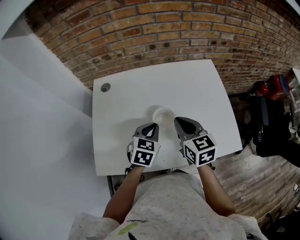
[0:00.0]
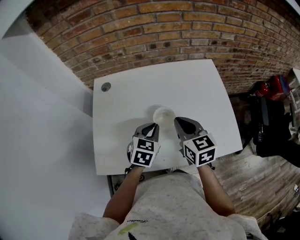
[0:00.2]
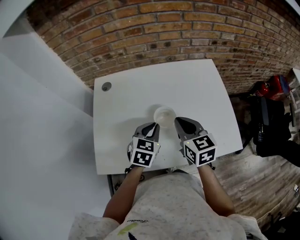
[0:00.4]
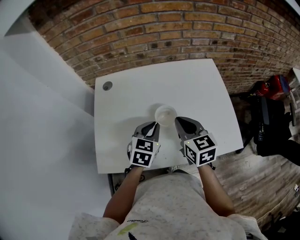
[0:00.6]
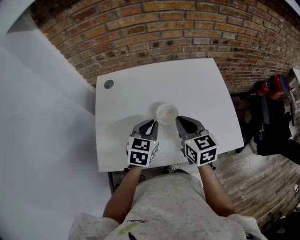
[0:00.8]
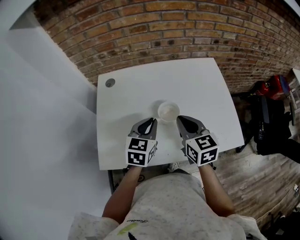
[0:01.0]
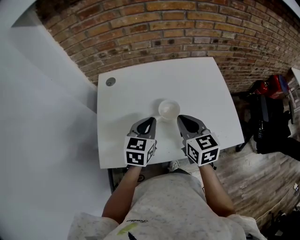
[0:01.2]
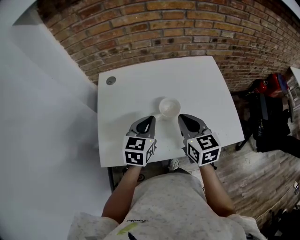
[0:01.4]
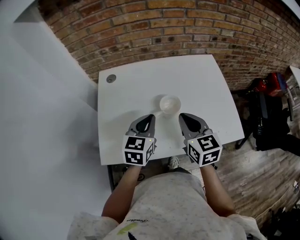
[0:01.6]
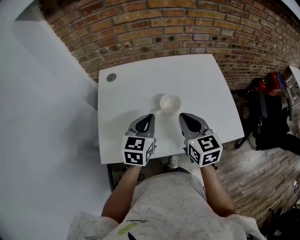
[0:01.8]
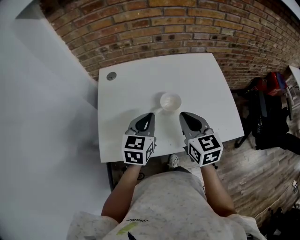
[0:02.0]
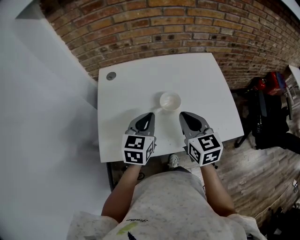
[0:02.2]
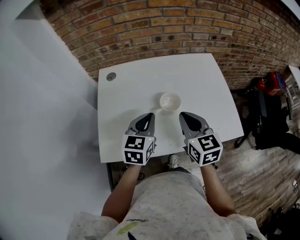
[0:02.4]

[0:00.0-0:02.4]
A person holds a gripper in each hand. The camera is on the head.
0:00.0 to 0:01.2: The left gripper ends up approximately 5 cm from where it was.
0:01.2 to 0:02.4: The grippers make only small movements.

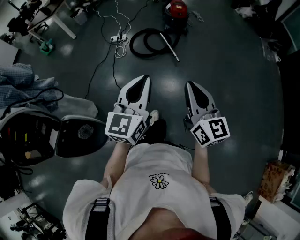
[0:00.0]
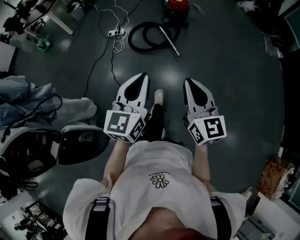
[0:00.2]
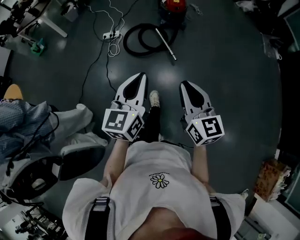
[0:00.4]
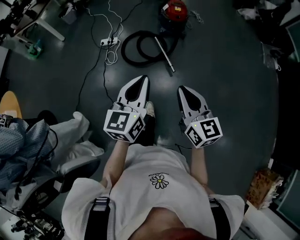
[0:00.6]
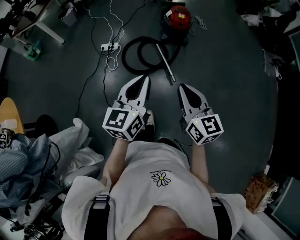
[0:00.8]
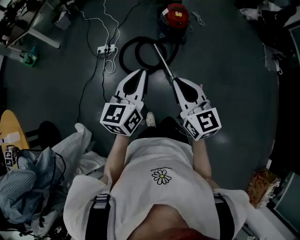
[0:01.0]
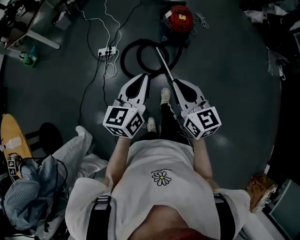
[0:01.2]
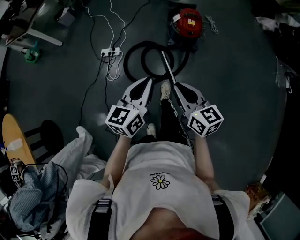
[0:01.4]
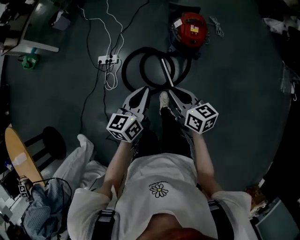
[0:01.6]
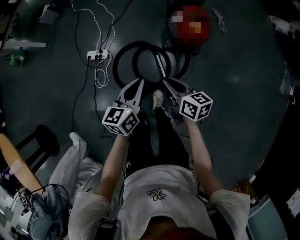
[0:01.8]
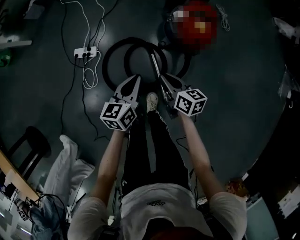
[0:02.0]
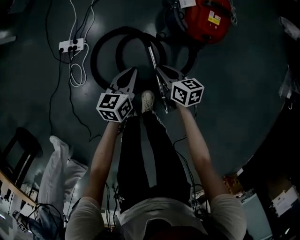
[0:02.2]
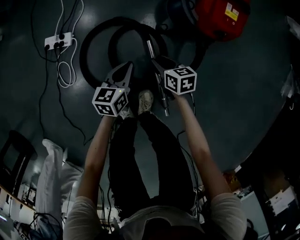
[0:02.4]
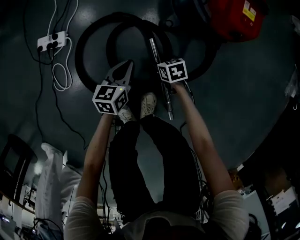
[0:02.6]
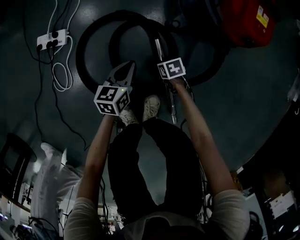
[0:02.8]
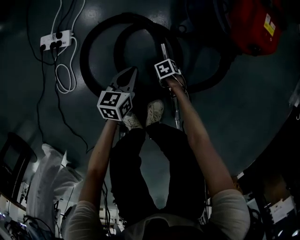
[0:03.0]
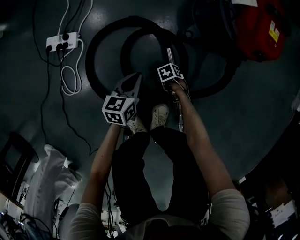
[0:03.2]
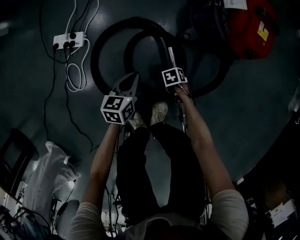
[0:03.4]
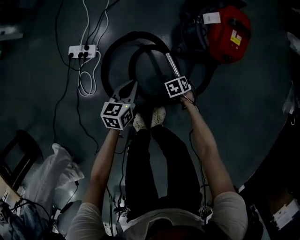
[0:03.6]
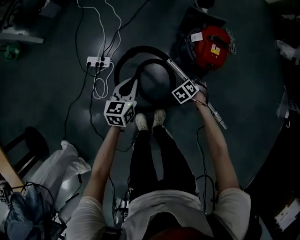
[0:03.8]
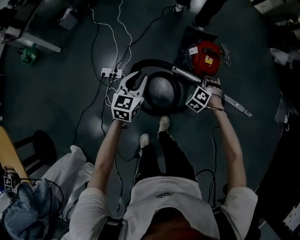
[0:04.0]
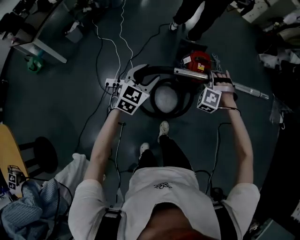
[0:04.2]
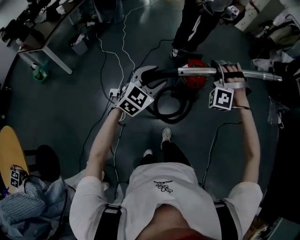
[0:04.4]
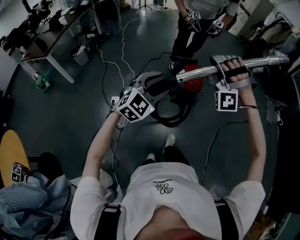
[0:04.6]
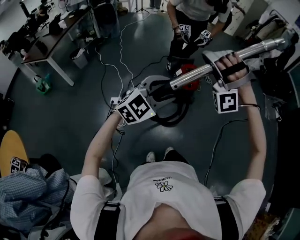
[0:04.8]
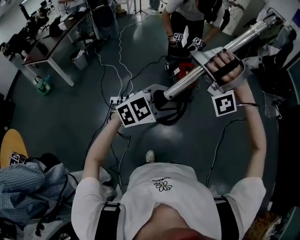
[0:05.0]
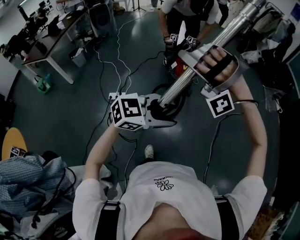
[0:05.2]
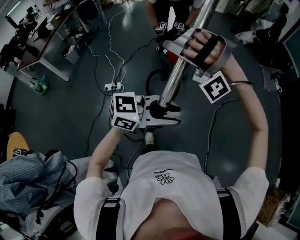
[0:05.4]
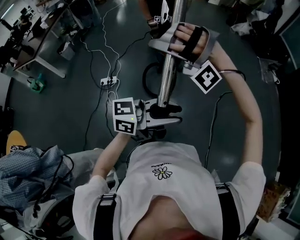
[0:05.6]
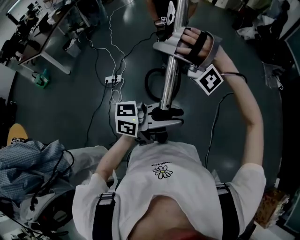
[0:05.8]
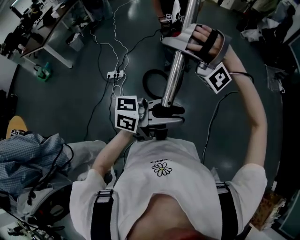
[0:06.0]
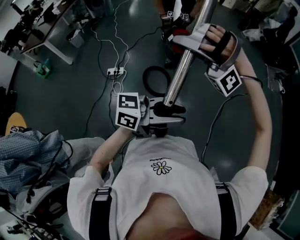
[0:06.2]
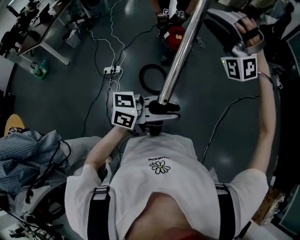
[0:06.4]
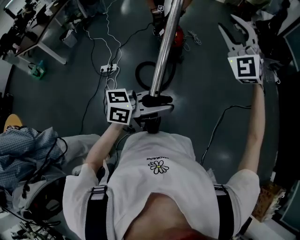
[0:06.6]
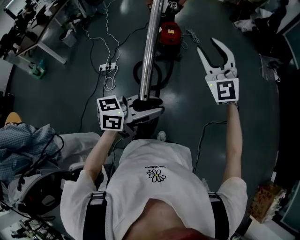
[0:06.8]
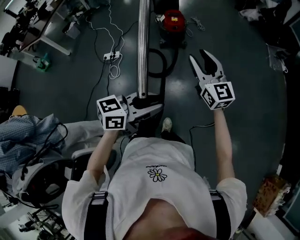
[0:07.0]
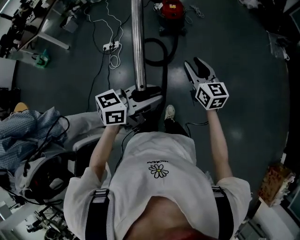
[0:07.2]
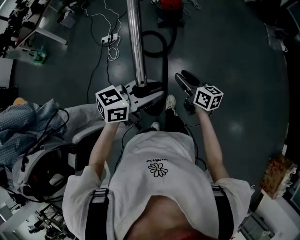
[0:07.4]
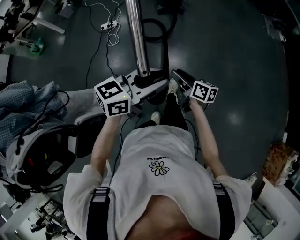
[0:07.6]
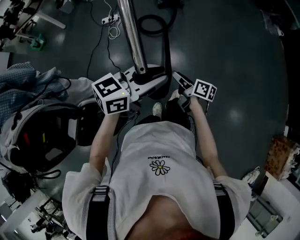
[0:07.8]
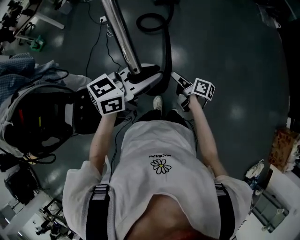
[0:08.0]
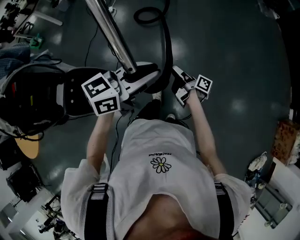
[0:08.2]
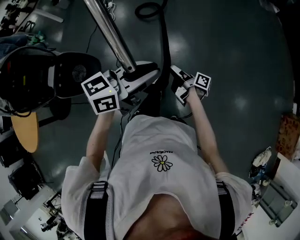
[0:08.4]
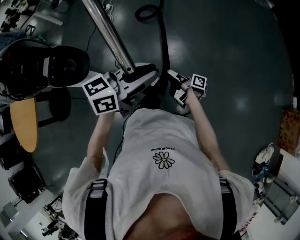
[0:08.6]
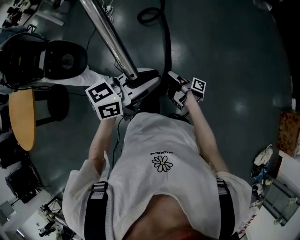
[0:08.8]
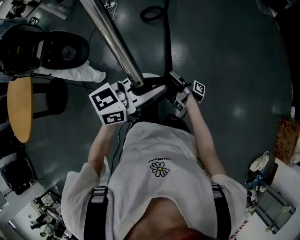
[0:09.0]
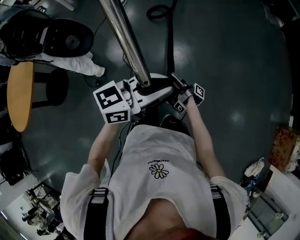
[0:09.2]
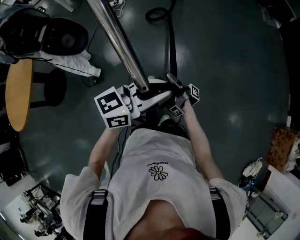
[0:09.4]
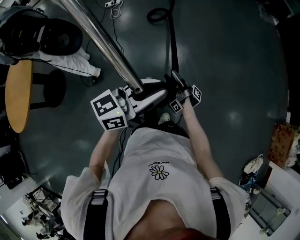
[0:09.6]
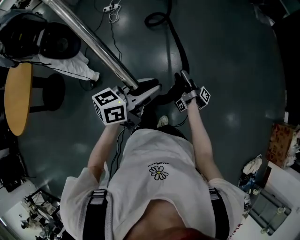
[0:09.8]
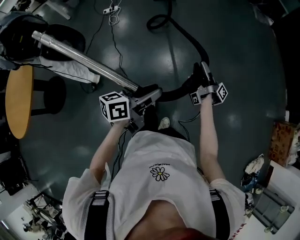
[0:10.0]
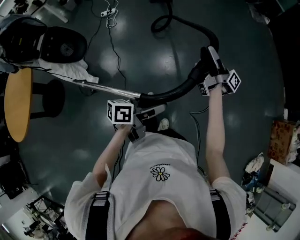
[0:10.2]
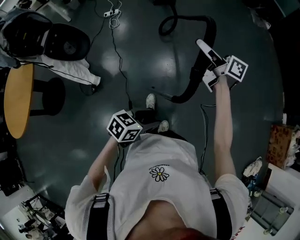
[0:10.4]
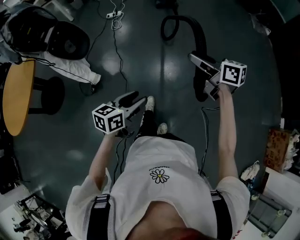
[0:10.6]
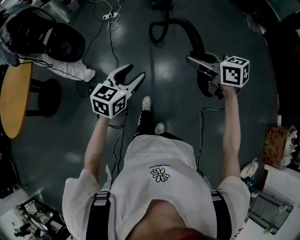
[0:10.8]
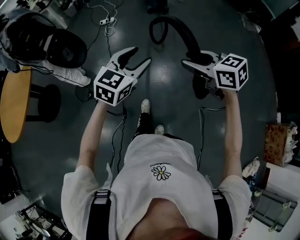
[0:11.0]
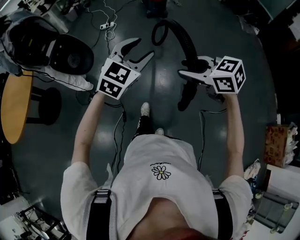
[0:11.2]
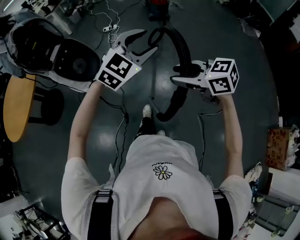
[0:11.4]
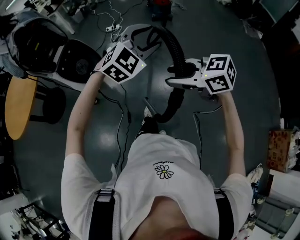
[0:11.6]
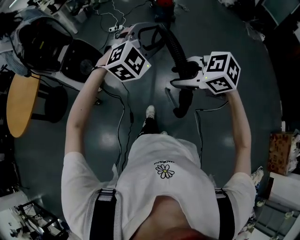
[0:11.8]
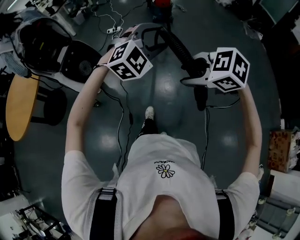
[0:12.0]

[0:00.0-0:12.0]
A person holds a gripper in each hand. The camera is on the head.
0:00.0 to 0:01.6: The two grippers travel together, forward, roughly 80 cm. The right gripper turns by some 40 degrees; the left gripper changes its angle by some 30 degrees.
0:01.6 to 0:03.0: The two grippers go some 70 cm downward. The left gripper rotates roughly 20 degrees. Meanwhile the right gripper tilts its fingers roughly 50 degrees downward, and opens.
0:03.0 to 0:04.4: Both grippers travel together upward, roughly 90 cm. The left gripper twists approximately 60 degrees clockwise, seen from behind, and opens up; the right gripper angles its fingers upward, by some 60 degrees, and closes.
0:04.4 to 0:06.0: The left gripper changes place by about 50 cm, and turns by about 70 degrees. Meanwhile the right gripper shifts by approximately 40 cm, and swivels approximately 60 degrees.
0:06.0 to 0:07.6: The left gripper changes place by roughly 30 cm, and swivels approximately 30 degrees; the right gripper shifts by some 50 cm, and turns by approximately 180 degrees.
0:07.6 to 0:09.0: The two grippers travel together, backward, approximately 50 cm. The right gripper twists approximately 60 degrees clockwise, seen from behind.
0:09.0 to 0:10.4: The left gripper goes about 20 cm backward and downward, rotates roughly 30 degrees, and opens up; the right gripper heads upward, covering approximately 30 cm, and twists some 60 degrees counterclockwise, seen from behind.
0:10.4 to 0:12.0: The right gripper ends up some 20 cm from where it was, and angles its fingers downward, by about 60 degrees, while the left gripper heads upward, covering about 25 cm, and twists roughly 70 degrees clockwise, seen from behind.

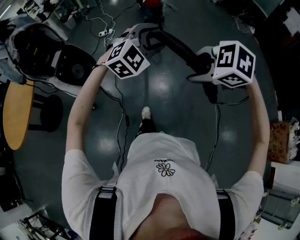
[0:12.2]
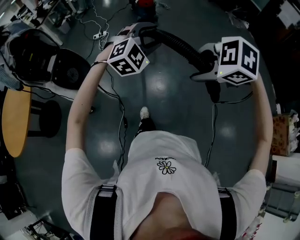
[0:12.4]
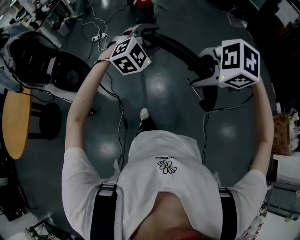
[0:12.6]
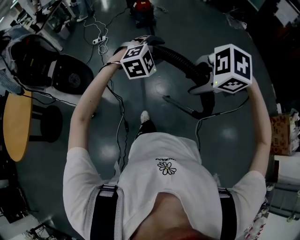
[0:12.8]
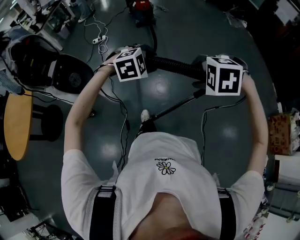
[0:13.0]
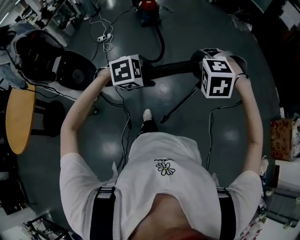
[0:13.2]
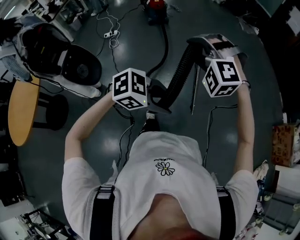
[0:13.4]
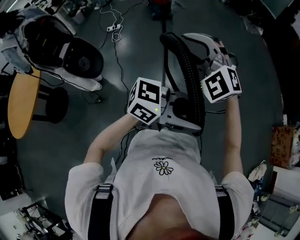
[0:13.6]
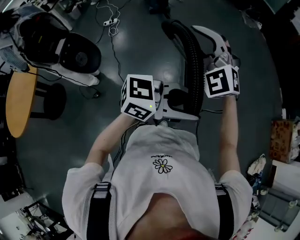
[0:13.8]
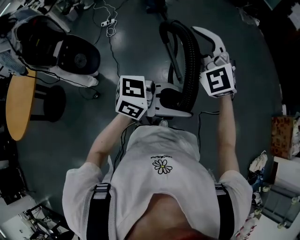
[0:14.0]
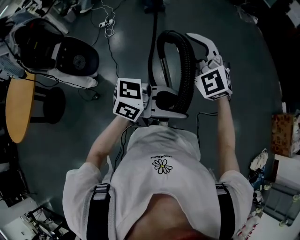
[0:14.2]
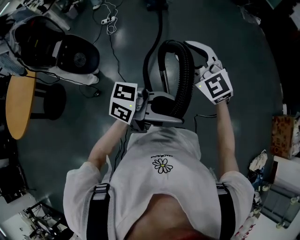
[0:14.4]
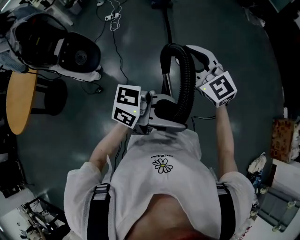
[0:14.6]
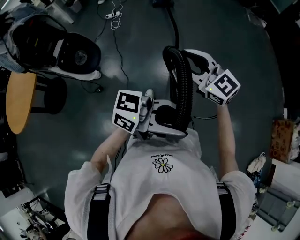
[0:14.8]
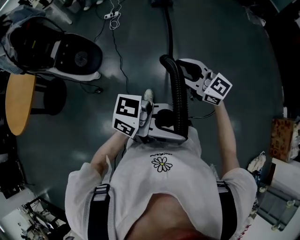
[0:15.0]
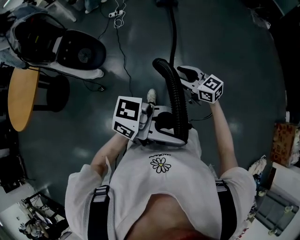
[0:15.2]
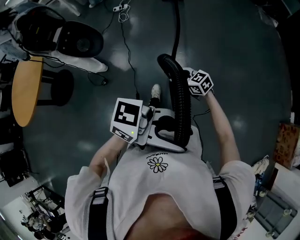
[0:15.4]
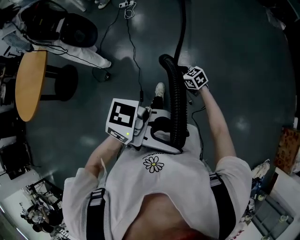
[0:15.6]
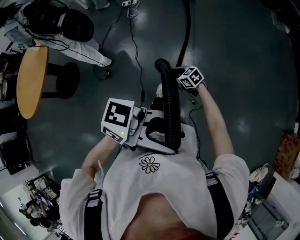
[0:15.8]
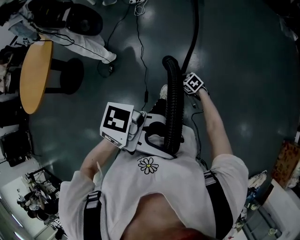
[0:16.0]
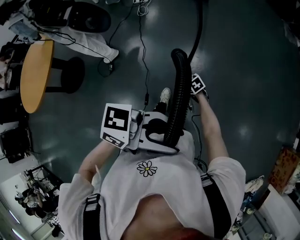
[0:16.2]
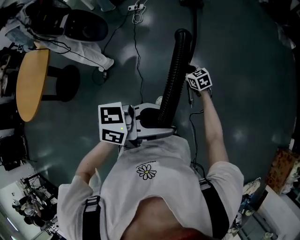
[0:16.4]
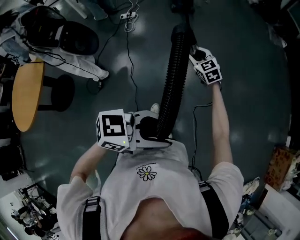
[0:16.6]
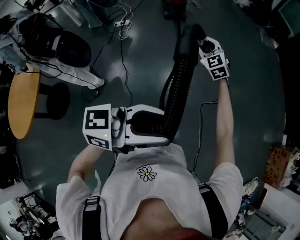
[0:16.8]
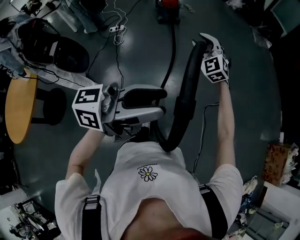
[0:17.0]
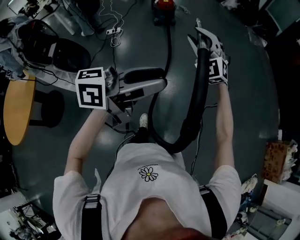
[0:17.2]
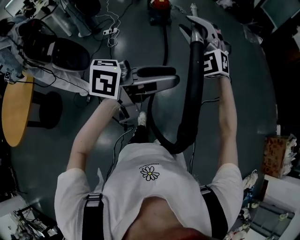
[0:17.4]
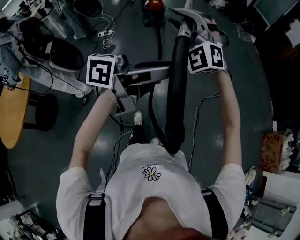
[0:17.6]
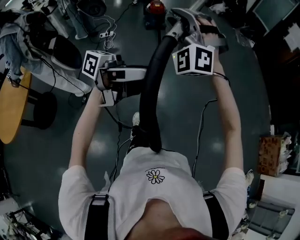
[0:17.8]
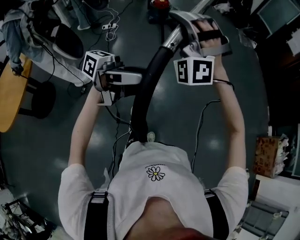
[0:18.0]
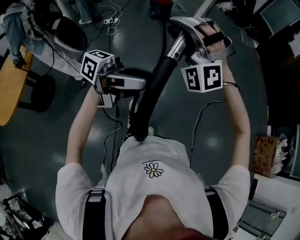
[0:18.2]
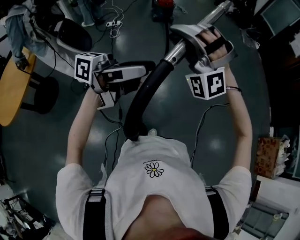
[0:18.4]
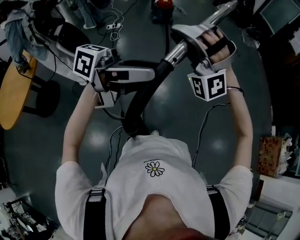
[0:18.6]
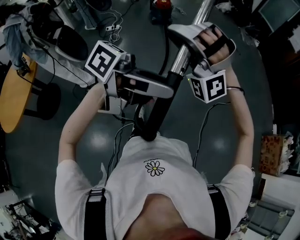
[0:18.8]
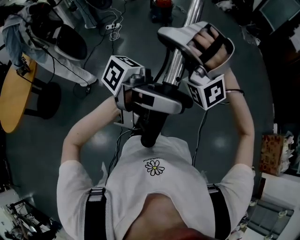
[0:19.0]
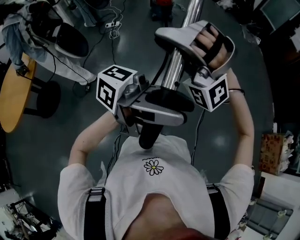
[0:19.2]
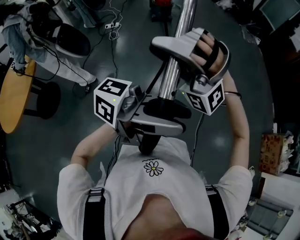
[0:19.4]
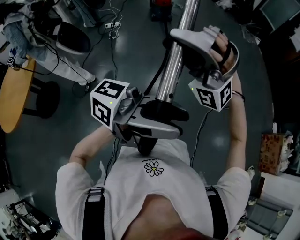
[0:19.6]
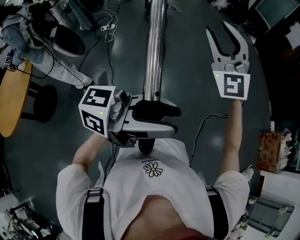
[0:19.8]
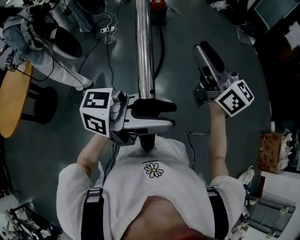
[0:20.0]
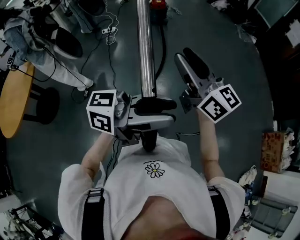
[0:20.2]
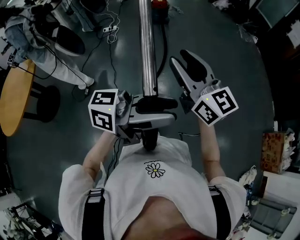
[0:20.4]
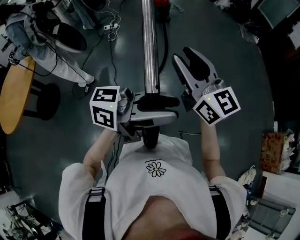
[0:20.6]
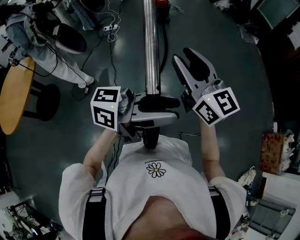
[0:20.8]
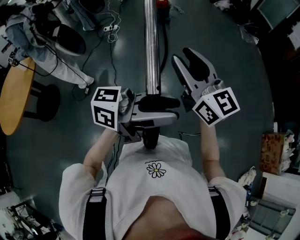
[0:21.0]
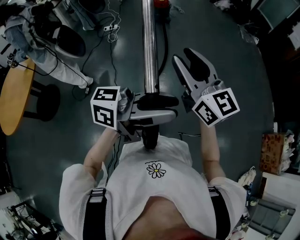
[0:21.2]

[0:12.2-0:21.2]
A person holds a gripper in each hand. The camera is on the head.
0:12.2 to 0:13.8: The left gripper travels downward and back again, roughly 10 cm each way, and turns by about 80 degrees, while the right gripper heads upward, covering about 5 cm, and angles its fingers upward, by about 50 degrees.
0:13.8 to 0:15.2: The left gripper ends up approximately 5 cm from where it was. The right gripper heads downward, covering about 25 cm, and twists some 60 degrees clockwise, seen from behind.
0:15.2 to 0:16.6: The left gripper moves about 20 cm, and turns by roughly 30 degrees, while the right gripper travels downward and back again, some 25 cm each way, and swivels about 40 degrees.
0:16.6 to 0:18.2: The left gripper travels upward by about 10 cm, and tips its fingers upward by some 40 degrees, while the right gripper is displaced upward by about 30 cm, and rotates around the line of its fingers by some 80 degrees, counterclockwise from behind.
0:18.2 to 0:19.8: The right gripper ends up roughly 15 cm from where it was, and twists some 50 degrees clockwise, seen from behind; the left gripper ends up some 10 cm from where it was.
0:19.8 to 0:21.2: The left gripper changes place by roughly 5 cm, while the right gripper ends up some 10 cm from where it was, and twists roughly 50 degrees clockwise, seen from behind.
